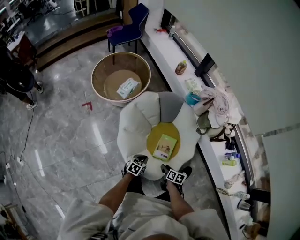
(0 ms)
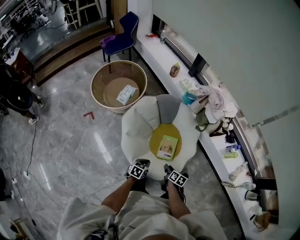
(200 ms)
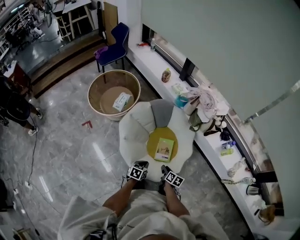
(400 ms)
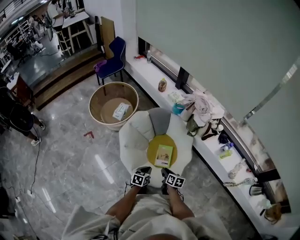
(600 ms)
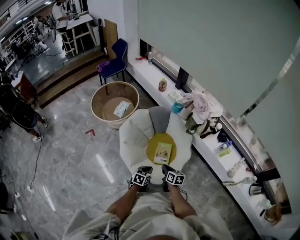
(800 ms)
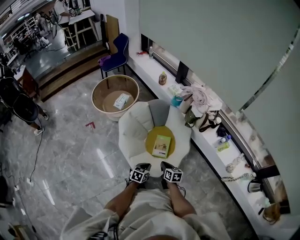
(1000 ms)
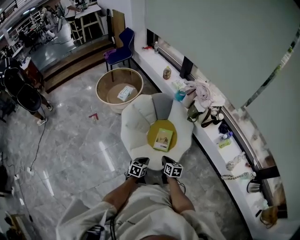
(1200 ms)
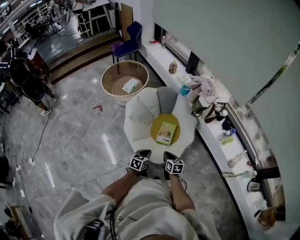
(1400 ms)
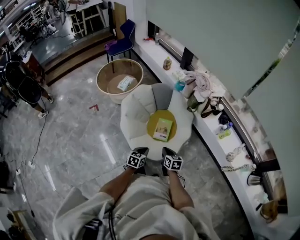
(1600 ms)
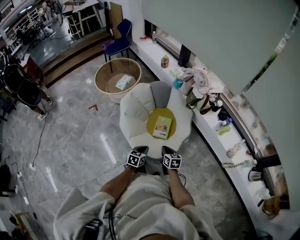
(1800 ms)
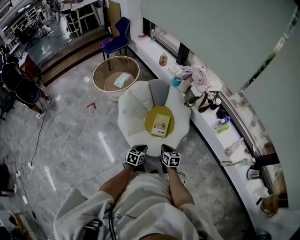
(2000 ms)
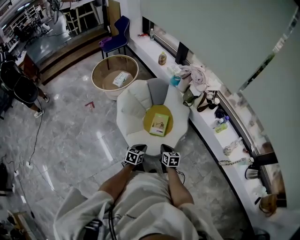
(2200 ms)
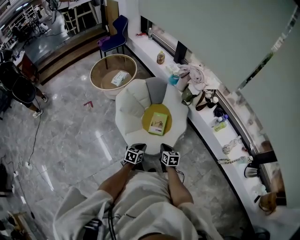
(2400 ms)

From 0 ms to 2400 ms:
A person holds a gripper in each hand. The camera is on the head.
From 0 ms to 1200 ms: The right gripper travels upward and backward by about 20 cm, swivels about 20 degrees, and closes; the left gripper moves backward, upward and to the right, some 20 cm.
From 1200 ms to 2400 ms: There are only small adjustments of the grippers.

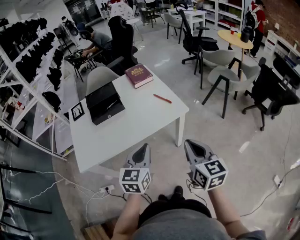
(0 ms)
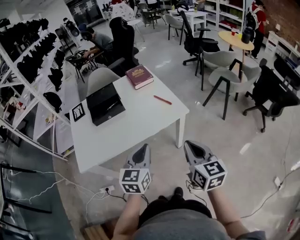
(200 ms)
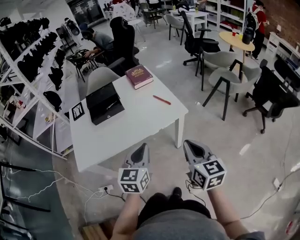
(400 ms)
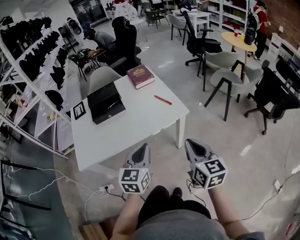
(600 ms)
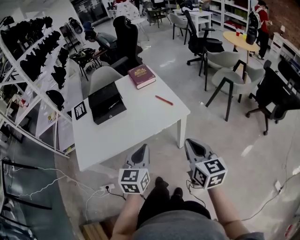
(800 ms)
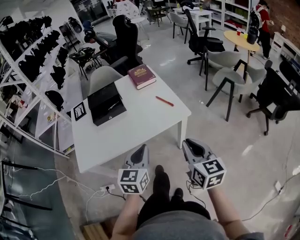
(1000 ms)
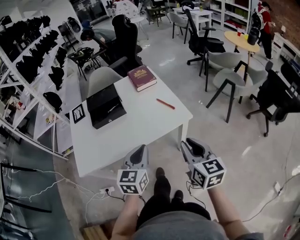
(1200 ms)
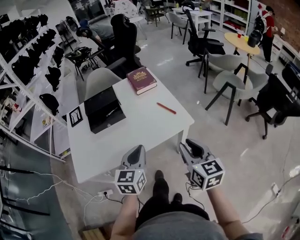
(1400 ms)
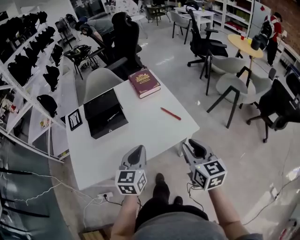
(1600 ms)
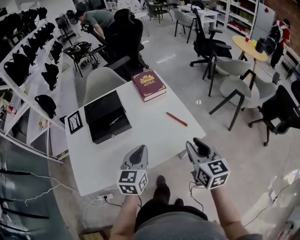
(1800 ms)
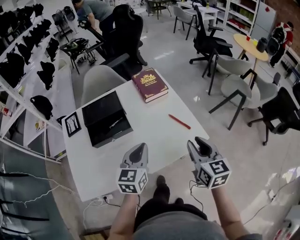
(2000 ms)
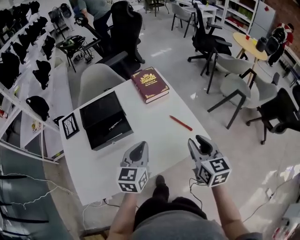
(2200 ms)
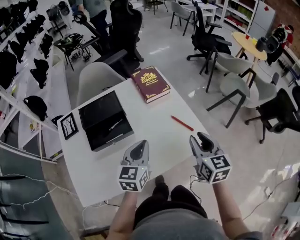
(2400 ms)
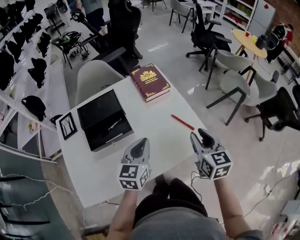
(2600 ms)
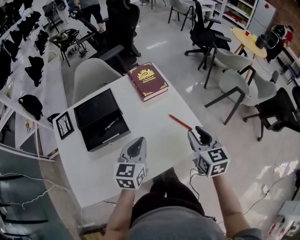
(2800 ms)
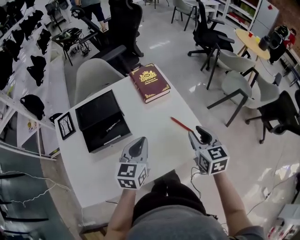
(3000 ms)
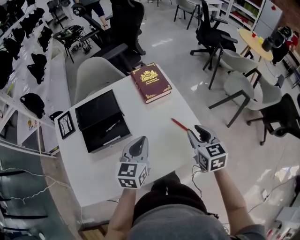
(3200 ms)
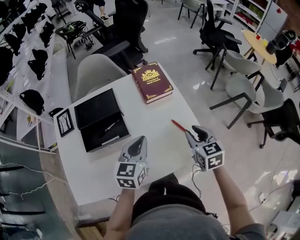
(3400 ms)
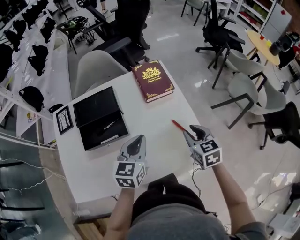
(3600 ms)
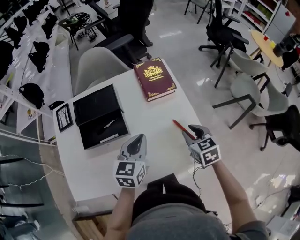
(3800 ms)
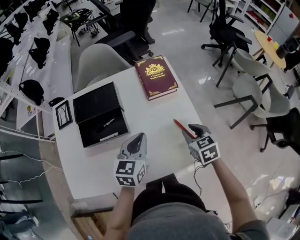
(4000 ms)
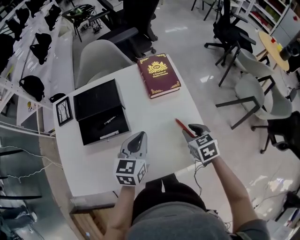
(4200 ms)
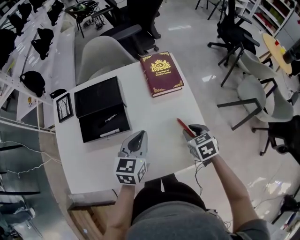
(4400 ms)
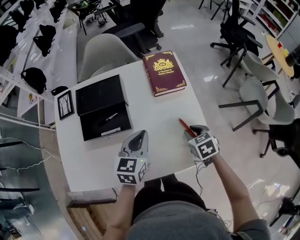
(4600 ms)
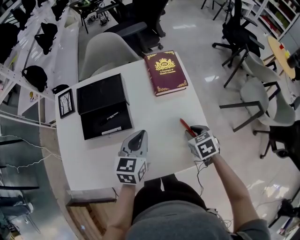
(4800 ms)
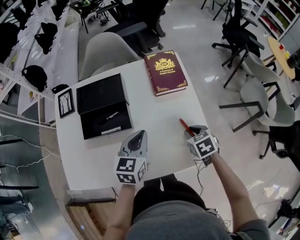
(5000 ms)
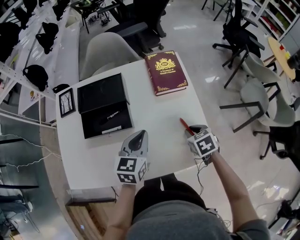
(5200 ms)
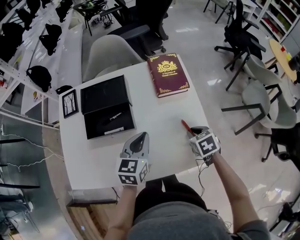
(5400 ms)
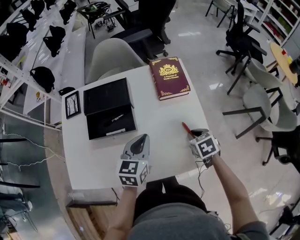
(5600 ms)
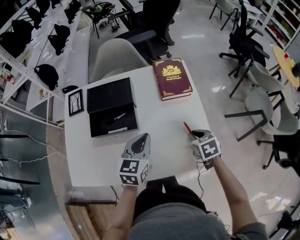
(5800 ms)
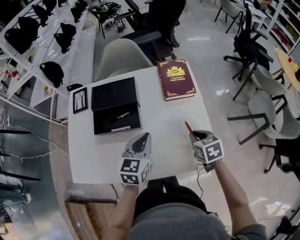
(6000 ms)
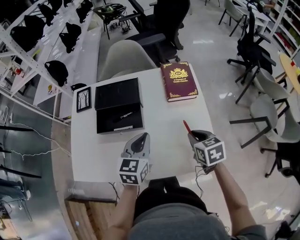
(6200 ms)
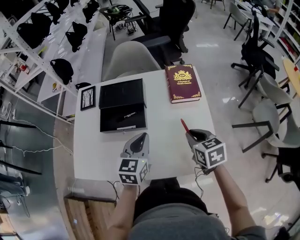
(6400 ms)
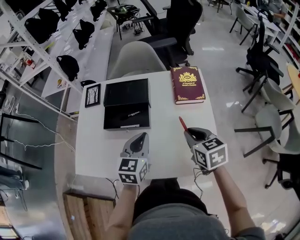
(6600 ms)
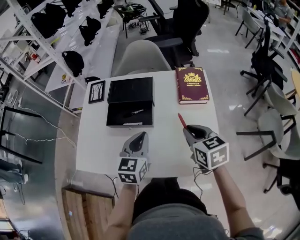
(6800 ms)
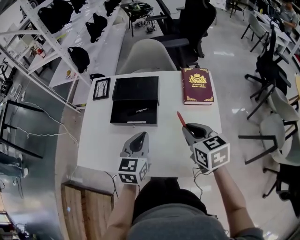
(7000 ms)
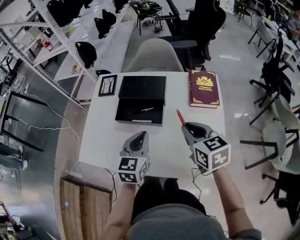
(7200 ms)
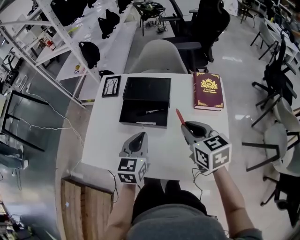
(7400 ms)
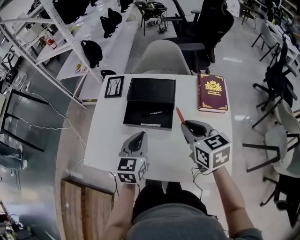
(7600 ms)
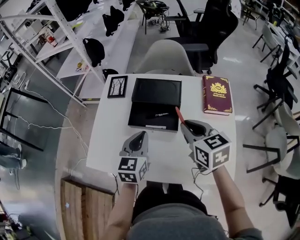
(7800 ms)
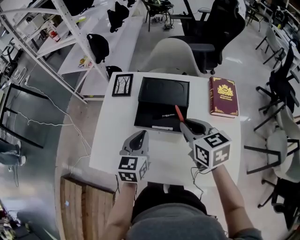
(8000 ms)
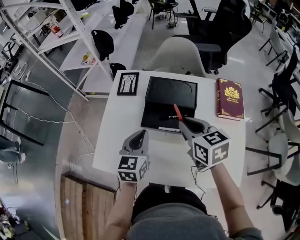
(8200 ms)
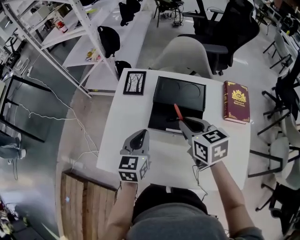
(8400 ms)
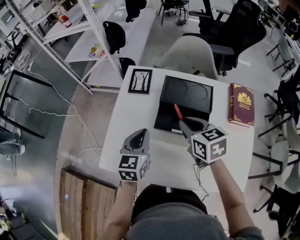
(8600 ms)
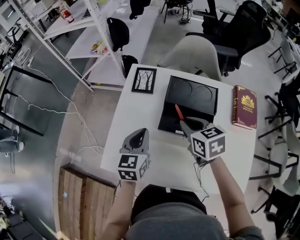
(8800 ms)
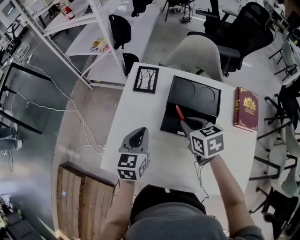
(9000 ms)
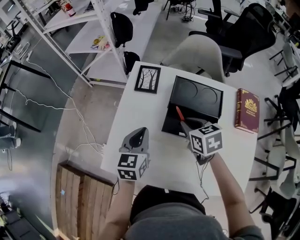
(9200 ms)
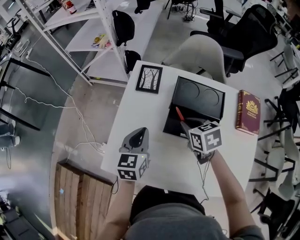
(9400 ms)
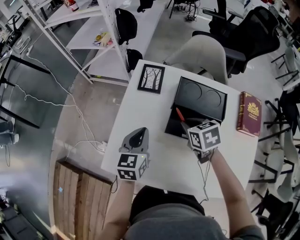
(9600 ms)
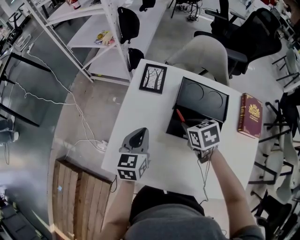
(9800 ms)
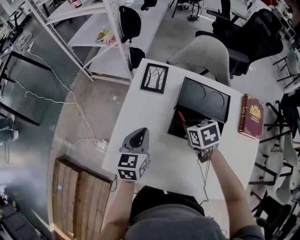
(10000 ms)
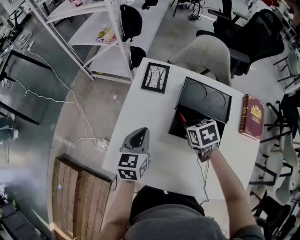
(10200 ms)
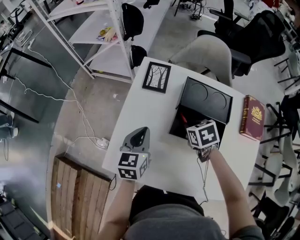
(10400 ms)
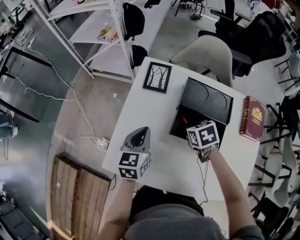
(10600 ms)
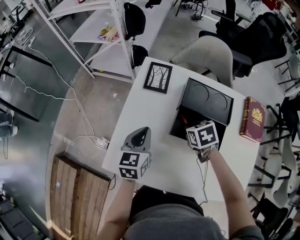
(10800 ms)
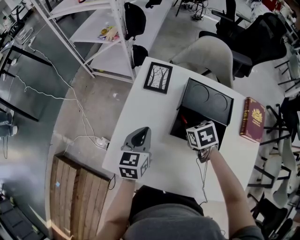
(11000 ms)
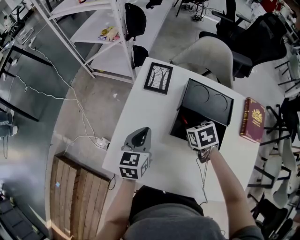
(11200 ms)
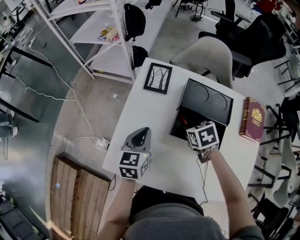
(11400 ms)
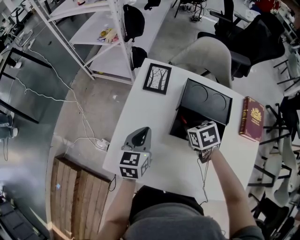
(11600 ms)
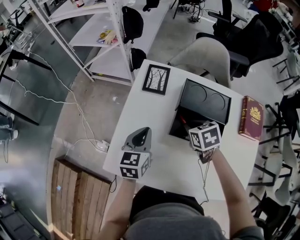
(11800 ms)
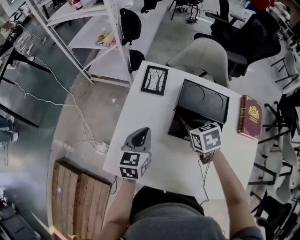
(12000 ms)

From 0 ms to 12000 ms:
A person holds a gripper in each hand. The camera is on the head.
From 0 ms to 1600 ms: The grippers both shift forward by approximately 15 cm. The right gripper opens.
From 1600 ms to 3000 ms: The grippers both shift forward by roughly 15 cm.
From 3000 ms to 4400 ms: The left gripper moves about 5 cm. Meanwhile the right gripper is displaced downward and forward by approximately 15 cm, and changes its angle by some 40 degrees.
From 4400 ms to 6000 ms: The grippers make only small movements.
From 6000 ms to 7600 ms: The right gripper moves to the left, upward and forward, some 25 cm, and rotates some 30 degrees. The left gripper goes some 15 cm to the left.
From 7600 ms to 9000 ms: The right gripper moves to the left, forward and downward, roughly 20 cm, while the left gripper heads to the left and forward, covering about 20 cm.
From 9000 ms to 10400 ms: The right gripper goes about 10 cm downward.
From 10400 ms to 12000 ms: The grippers make only small movements.

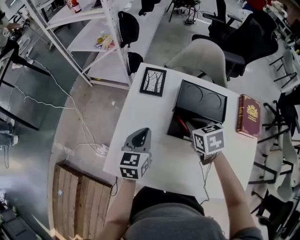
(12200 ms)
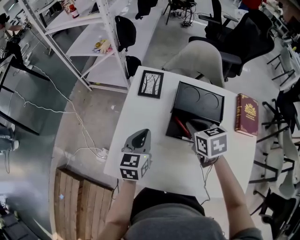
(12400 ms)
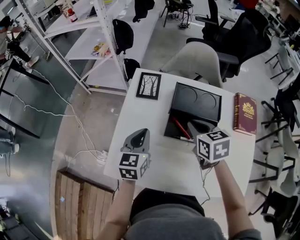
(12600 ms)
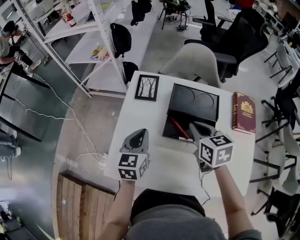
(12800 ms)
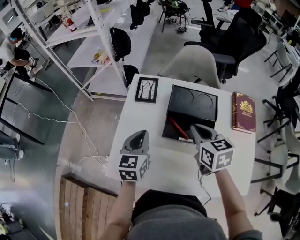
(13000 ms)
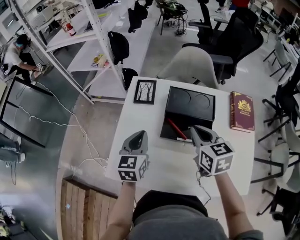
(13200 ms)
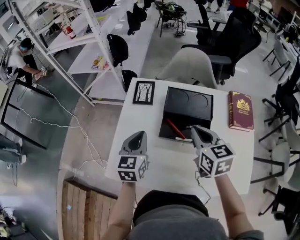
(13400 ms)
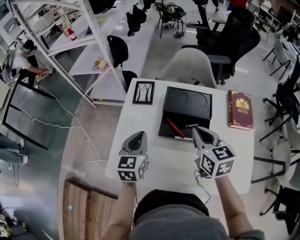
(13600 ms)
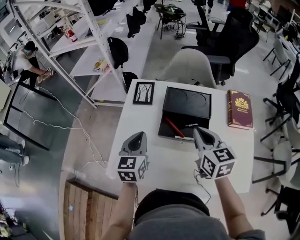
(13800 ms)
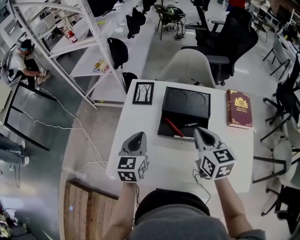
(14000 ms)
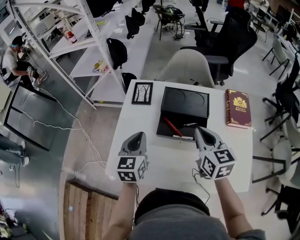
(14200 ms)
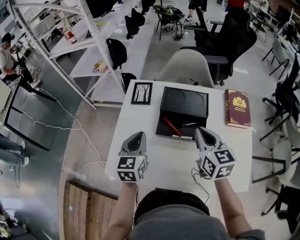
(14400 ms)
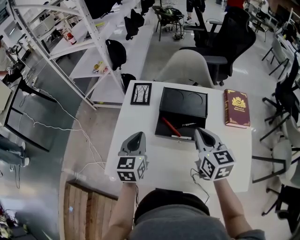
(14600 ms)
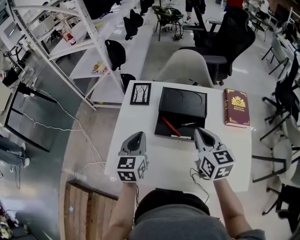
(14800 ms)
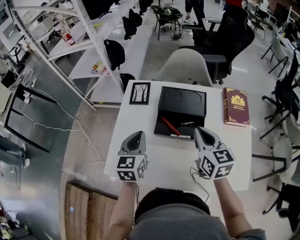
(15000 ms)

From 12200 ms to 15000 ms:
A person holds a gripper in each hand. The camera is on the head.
From 12200 ms to 13600 ms: The left gripper travels upward by roughly 5 cm, while the right gripper is displaced upward and backward by approximately 10 cm, and changes its angle by approximately 30 degrees.
From 13600 ms to 15000 ms: The grippers make only small movements.

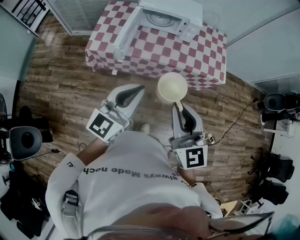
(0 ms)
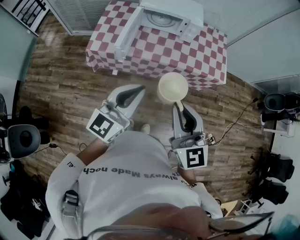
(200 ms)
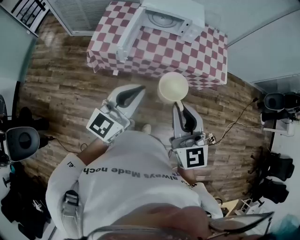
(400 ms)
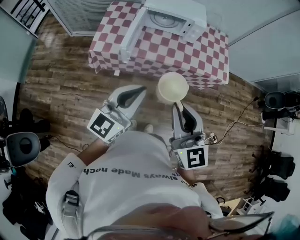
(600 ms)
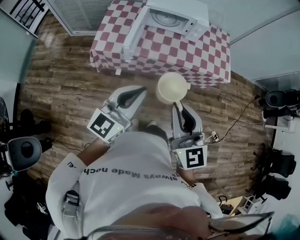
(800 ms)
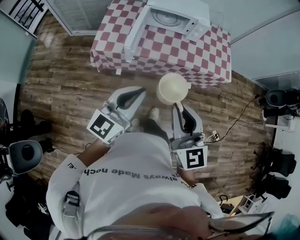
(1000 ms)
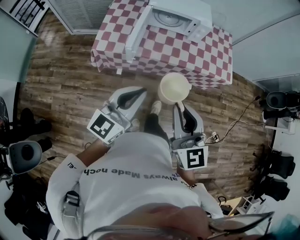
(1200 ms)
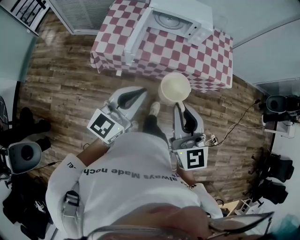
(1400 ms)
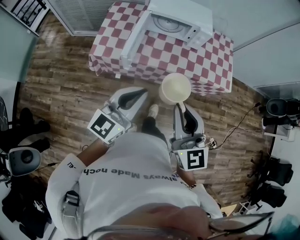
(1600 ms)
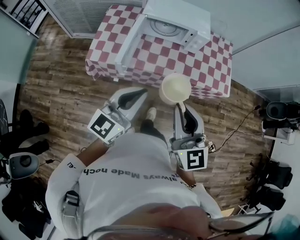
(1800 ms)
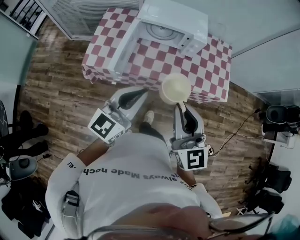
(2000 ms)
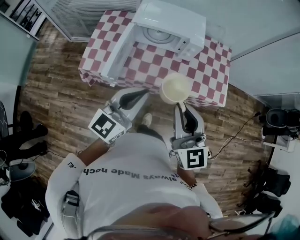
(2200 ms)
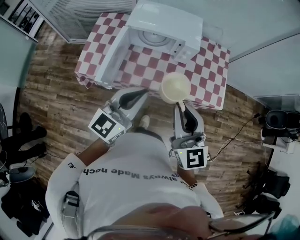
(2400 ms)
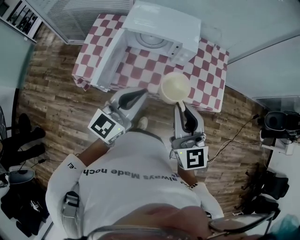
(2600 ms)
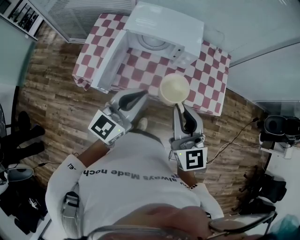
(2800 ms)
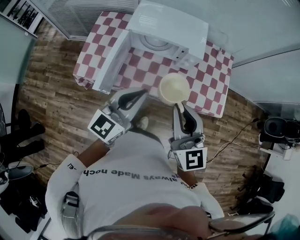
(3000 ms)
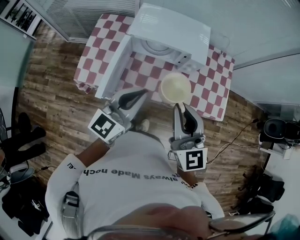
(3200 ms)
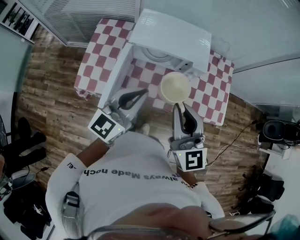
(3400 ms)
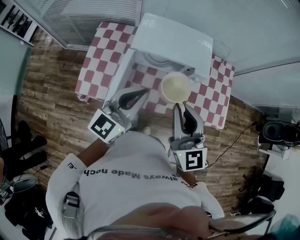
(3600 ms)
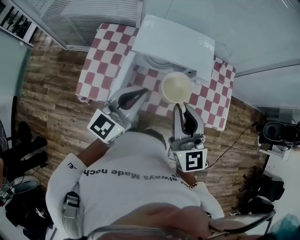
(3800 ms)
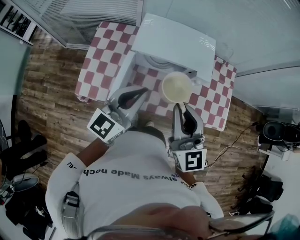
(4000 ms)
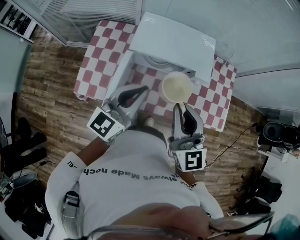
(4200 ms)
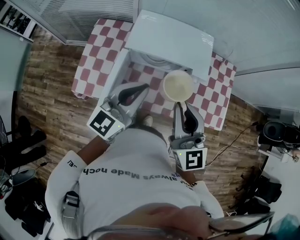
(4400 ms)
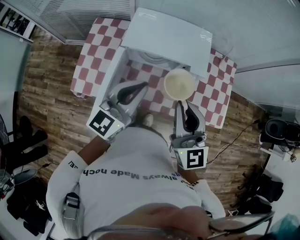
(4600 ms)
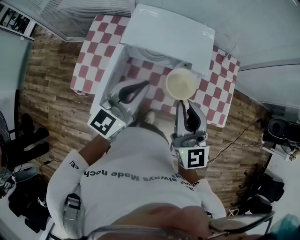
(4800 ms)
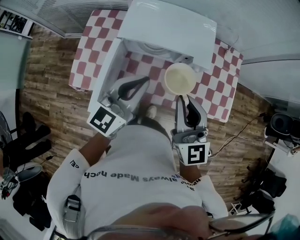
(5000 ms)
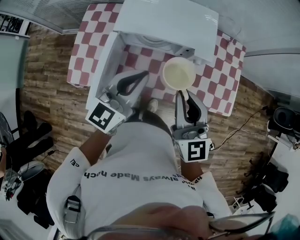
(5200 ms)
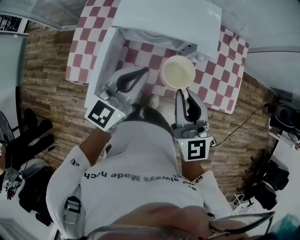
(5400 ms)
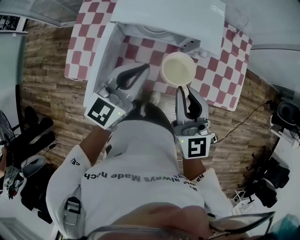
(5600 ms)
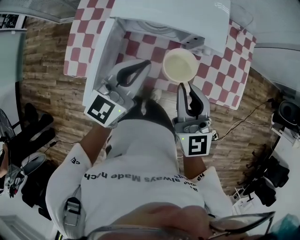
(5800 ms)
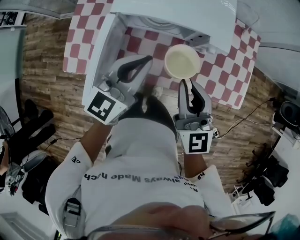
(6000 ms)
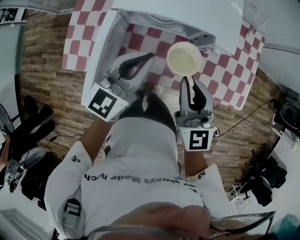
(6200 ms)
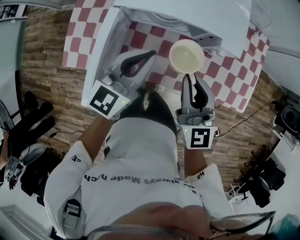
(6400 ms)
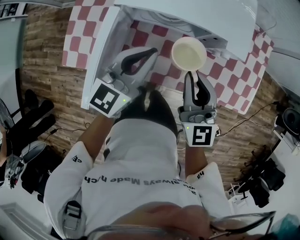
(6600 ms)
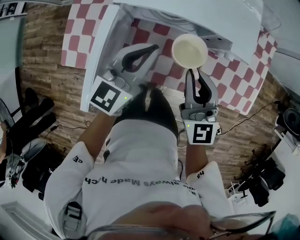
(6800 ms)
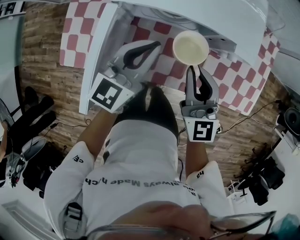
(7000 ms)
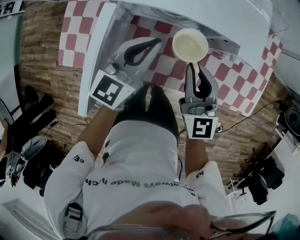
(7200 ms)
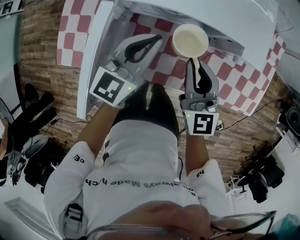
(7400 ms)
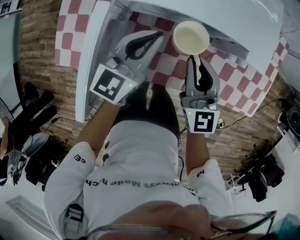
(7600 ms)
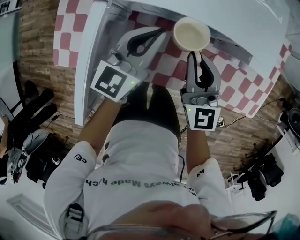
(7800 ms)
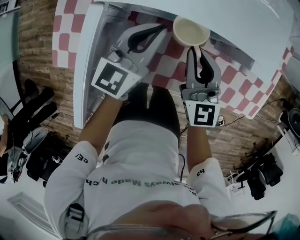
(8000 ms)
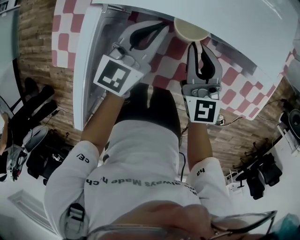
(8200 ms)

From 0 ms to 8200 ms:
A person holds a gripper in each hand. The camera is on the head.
From 0 ms to 1600 ms: Both grippers travel together forward and to the left, some 10 cm.
From 1600 ms to 3200 ms: The grippers both shift forward by about 30 cm.
From 3200 ms to 5000 ms: Both grippers travel together forward, about 15 cm.
From 5000 ms to 6600 ms: Both grippers move downward and forward, roughly 15 cm.
From 6600 ms to 8200 ms: Both grippers travel together downward and forward, roughly 20 cm.
